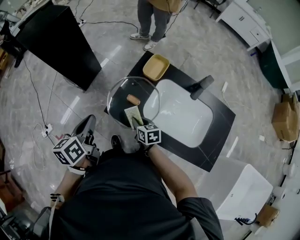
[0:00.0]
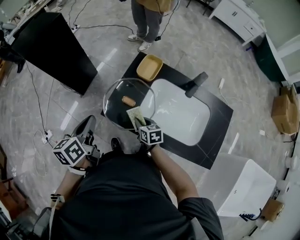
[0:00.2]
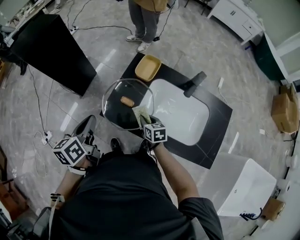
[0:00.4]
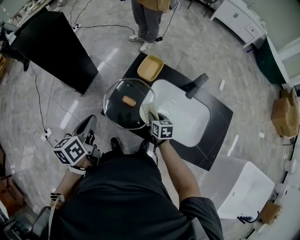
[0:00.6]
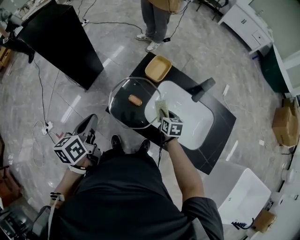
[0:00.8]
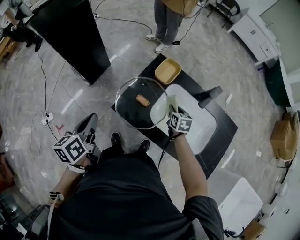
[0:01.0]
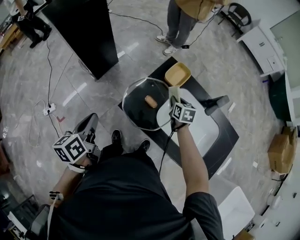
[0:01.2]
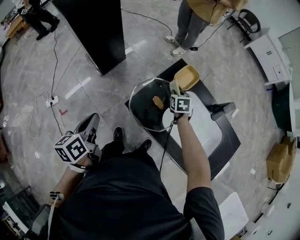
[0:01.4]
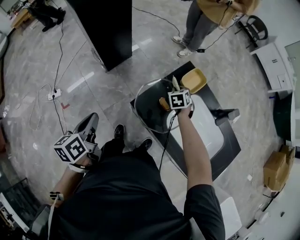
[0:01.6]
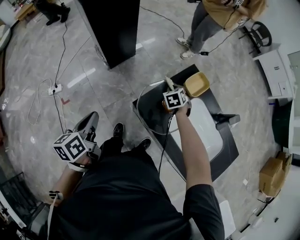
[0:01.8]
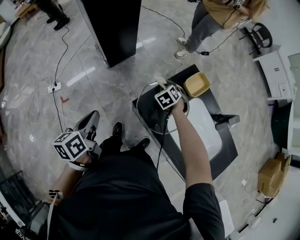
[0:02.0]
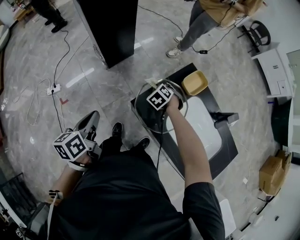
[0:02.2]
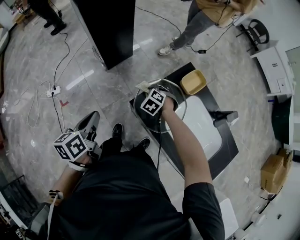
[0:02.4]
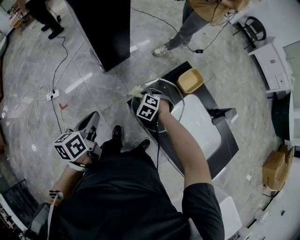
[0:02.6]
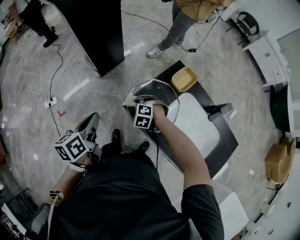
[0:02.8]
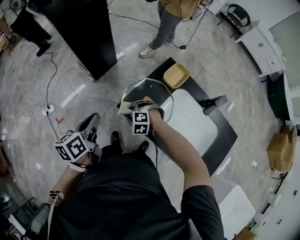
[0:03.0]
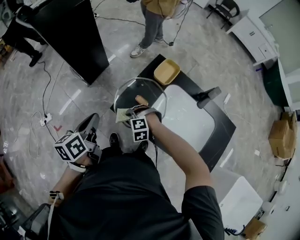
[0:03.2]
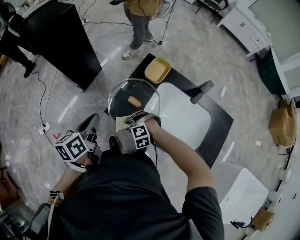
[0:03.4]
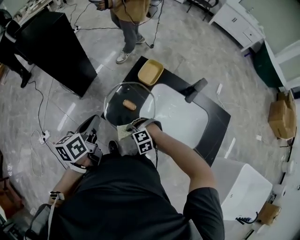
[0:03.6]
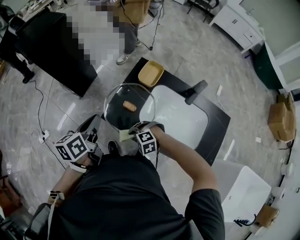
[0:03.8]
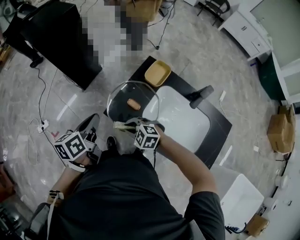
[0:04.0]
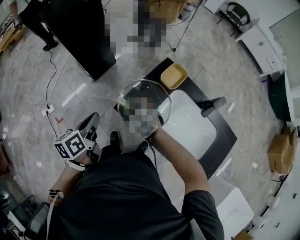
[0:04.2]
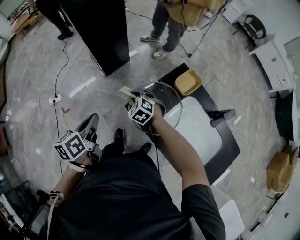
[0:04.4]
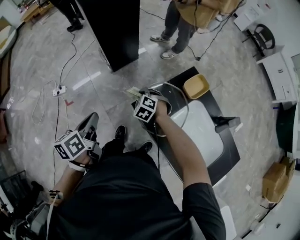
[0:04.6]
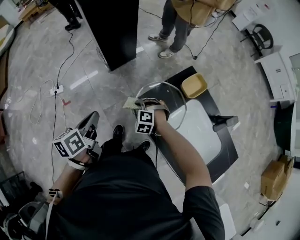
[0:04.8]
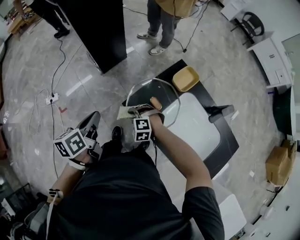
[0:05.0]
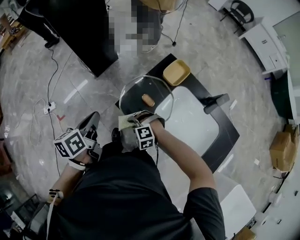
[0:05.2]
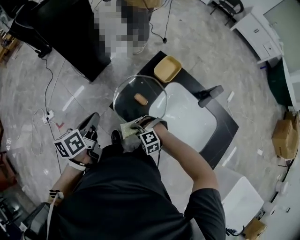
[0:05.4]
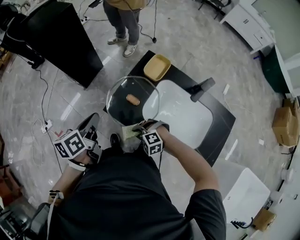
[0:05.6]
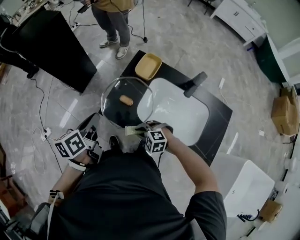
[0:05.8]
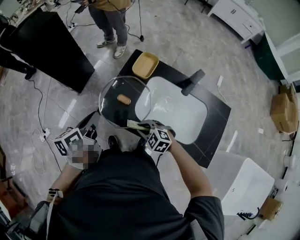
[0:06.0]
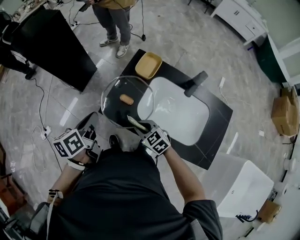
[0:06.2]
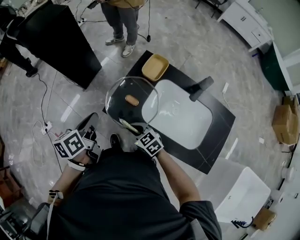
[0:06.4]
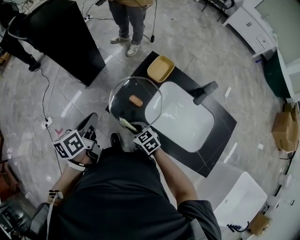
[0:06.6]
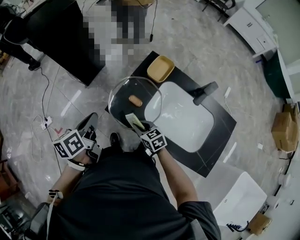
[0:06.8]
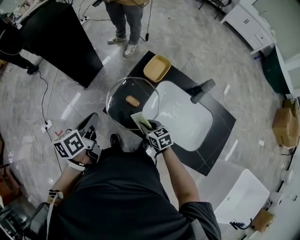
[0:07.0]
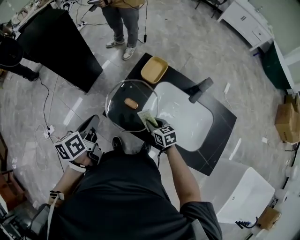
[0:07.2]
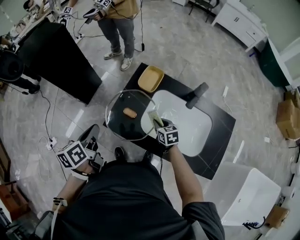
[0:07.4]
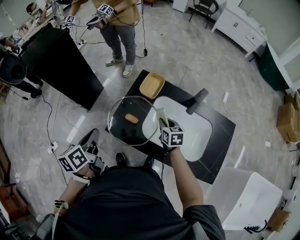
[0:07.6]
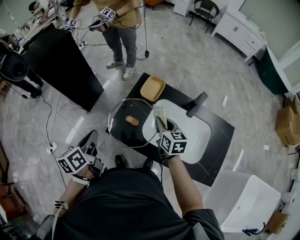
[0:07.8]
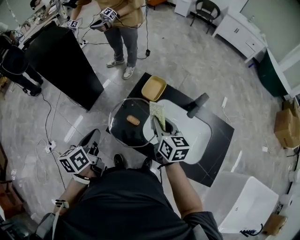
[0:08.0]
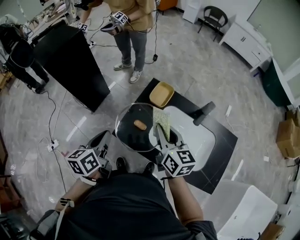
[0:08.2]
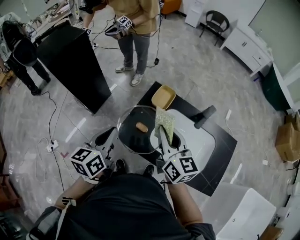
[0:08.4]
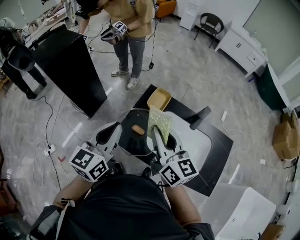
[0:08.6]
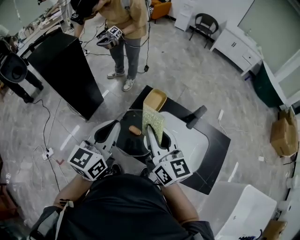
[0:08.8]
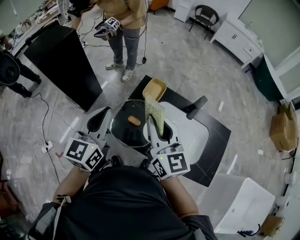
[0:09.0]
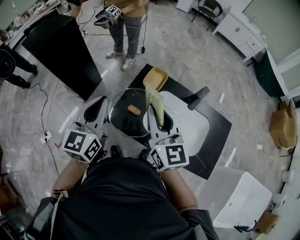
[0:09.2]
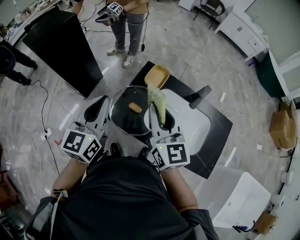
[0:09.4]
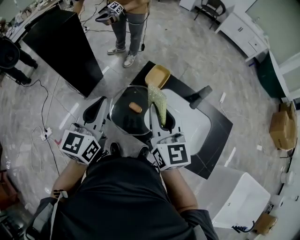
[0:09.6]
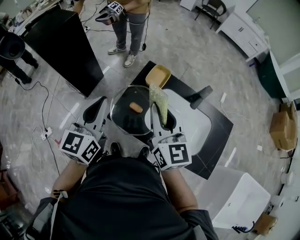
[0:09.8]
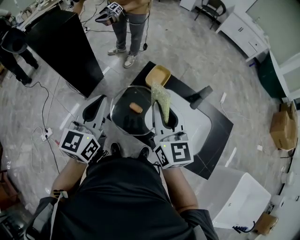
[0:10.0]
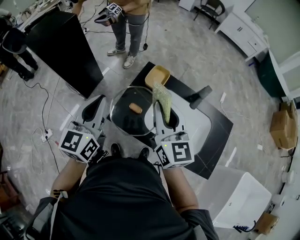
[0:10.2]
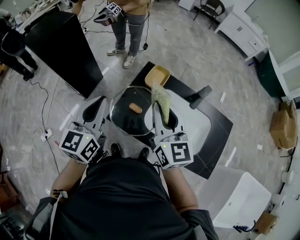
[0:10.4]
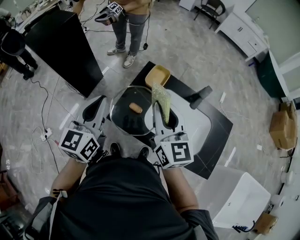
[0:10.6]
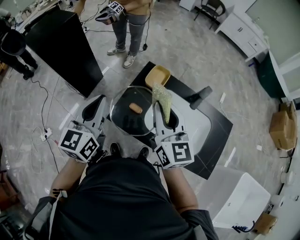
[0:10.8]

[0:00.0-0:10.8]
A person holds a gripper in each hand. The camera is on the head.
0:00.0 to 0:01.6: The right gripper is displaced forward by approximately 20 cm, and swivels approximately 40 degrees. The left gripper travels to the left and backward by some 15 cm.
0:01.6 to 0:03.0: The left gripper shifts approximately 5 cm to the right. The right gripper is displaced to the left and backward by about 20 cm, and twists about 60 degrees counterclockwise, seen from behind.
0:03.0 to 0:04.6: The right gripper shifts approximately 10 cm forward; the left gripper moves to the left, some 5 cm.
0:04.6 to 0:06.2: The left gripper shifts about 15 cm to the right, and changes its angle by some 30 degrees; the right gripper is displaced backward and to the right by about 25 cm, and rotates around the line of its fingers by roughly 50 degrees, clockwise from behind.
0:06.2 to 0:07.8: The right gripper goes roughly 20 cm to the right, upward and forward, and changes its angle by about 40 degrees.
0:07.8 to 0:09.2: The left gripper goes about 10 cm upward, and changes its angle by roughly 40 degrees; the right gripper shifts roughly 20 cm upward, and rotates about 30 degrees.
0:09.2 to 0:10.8: The grippers make only small movements.

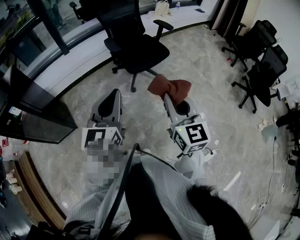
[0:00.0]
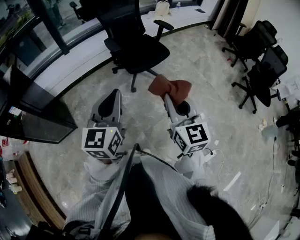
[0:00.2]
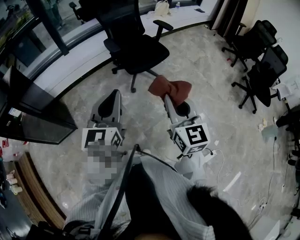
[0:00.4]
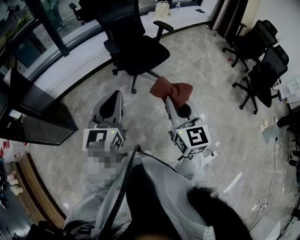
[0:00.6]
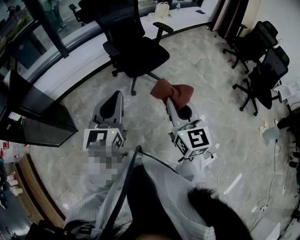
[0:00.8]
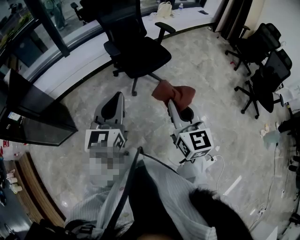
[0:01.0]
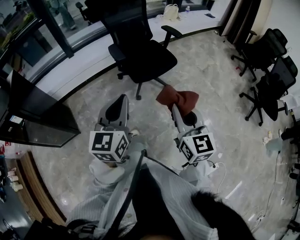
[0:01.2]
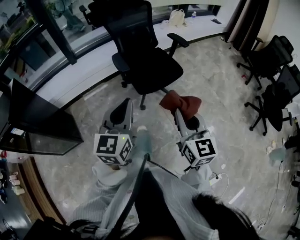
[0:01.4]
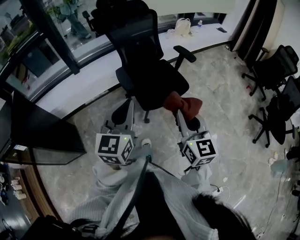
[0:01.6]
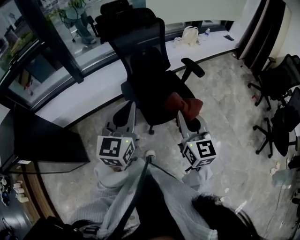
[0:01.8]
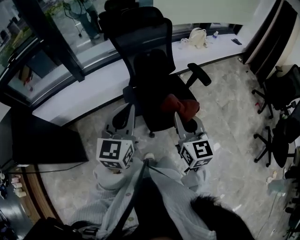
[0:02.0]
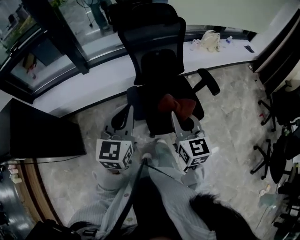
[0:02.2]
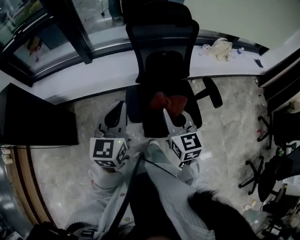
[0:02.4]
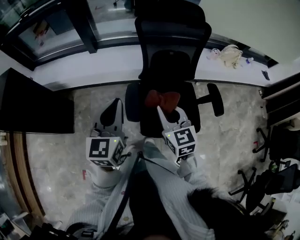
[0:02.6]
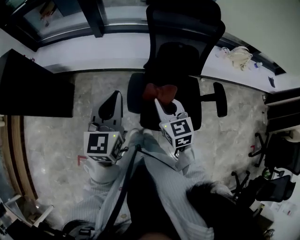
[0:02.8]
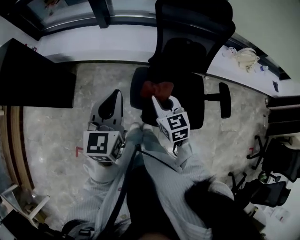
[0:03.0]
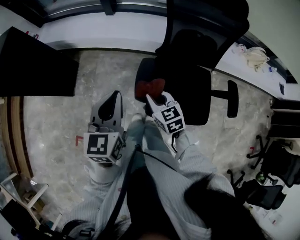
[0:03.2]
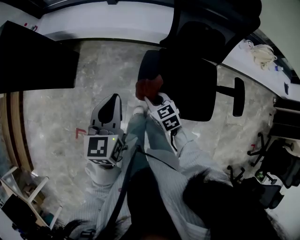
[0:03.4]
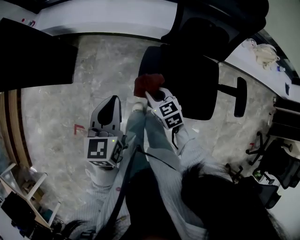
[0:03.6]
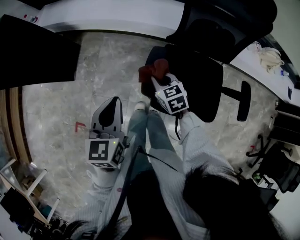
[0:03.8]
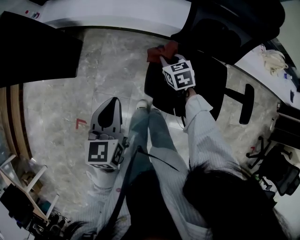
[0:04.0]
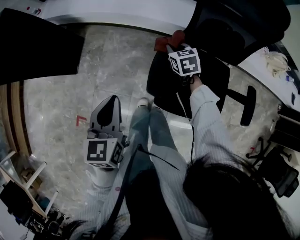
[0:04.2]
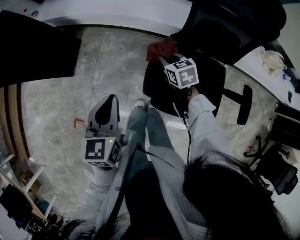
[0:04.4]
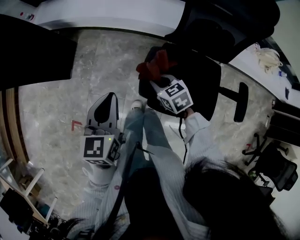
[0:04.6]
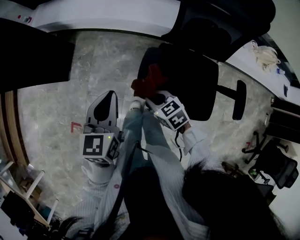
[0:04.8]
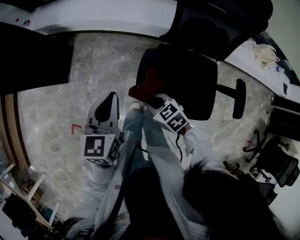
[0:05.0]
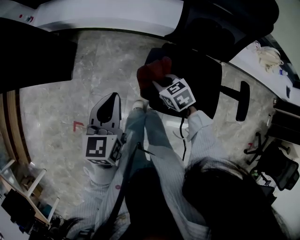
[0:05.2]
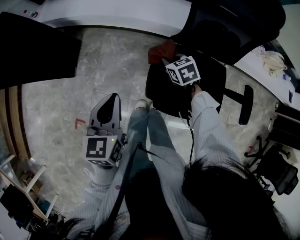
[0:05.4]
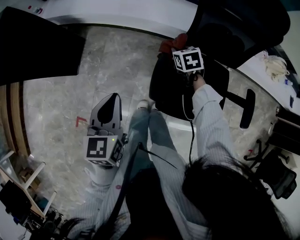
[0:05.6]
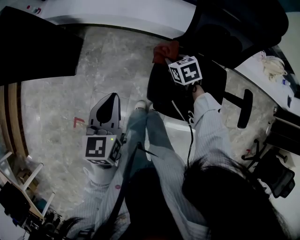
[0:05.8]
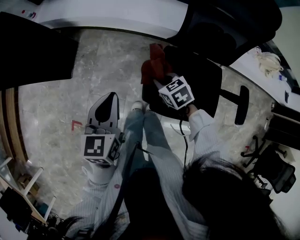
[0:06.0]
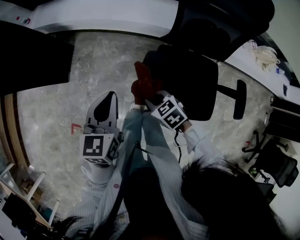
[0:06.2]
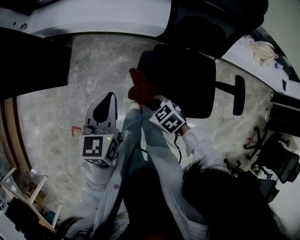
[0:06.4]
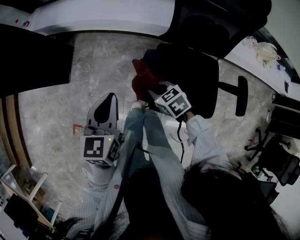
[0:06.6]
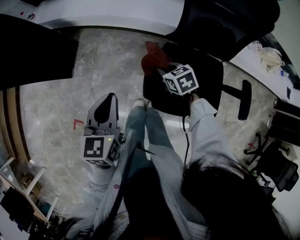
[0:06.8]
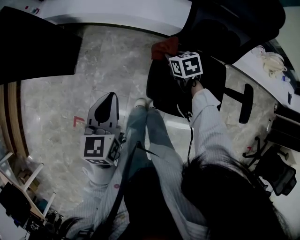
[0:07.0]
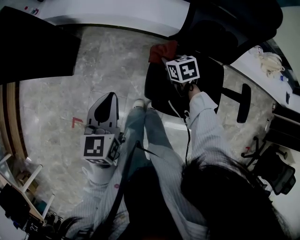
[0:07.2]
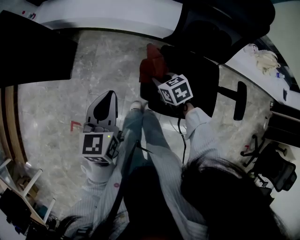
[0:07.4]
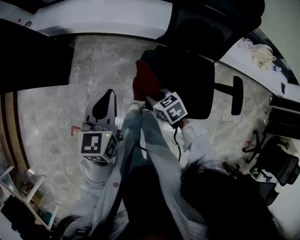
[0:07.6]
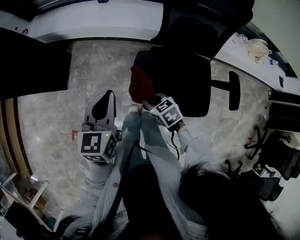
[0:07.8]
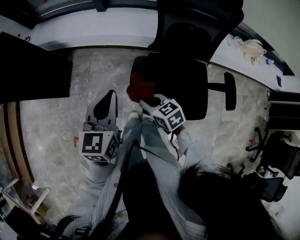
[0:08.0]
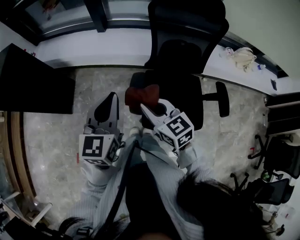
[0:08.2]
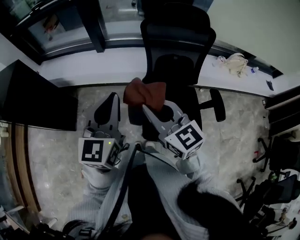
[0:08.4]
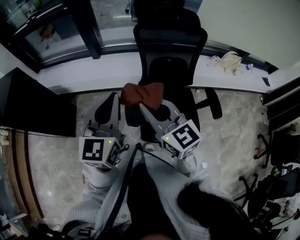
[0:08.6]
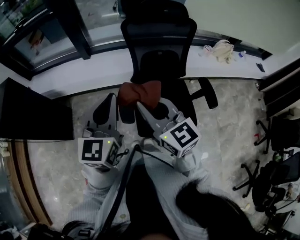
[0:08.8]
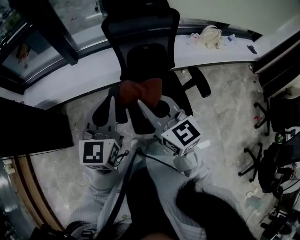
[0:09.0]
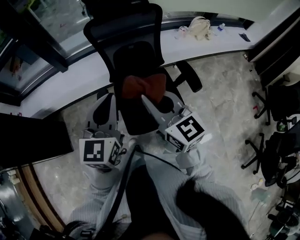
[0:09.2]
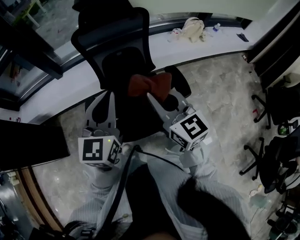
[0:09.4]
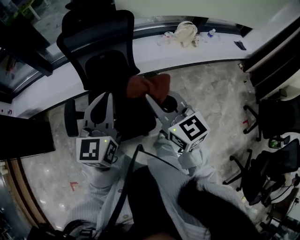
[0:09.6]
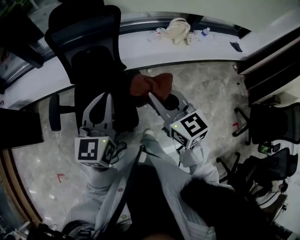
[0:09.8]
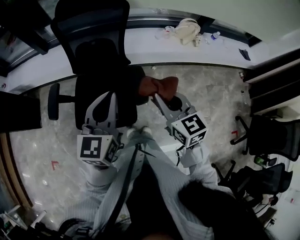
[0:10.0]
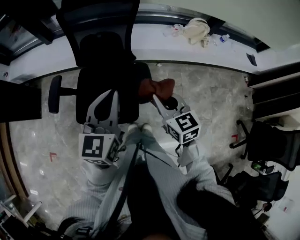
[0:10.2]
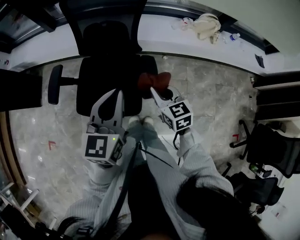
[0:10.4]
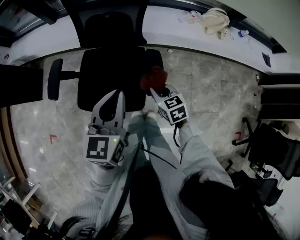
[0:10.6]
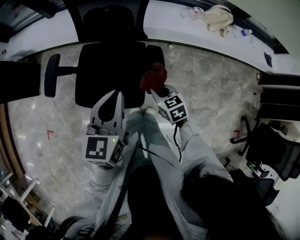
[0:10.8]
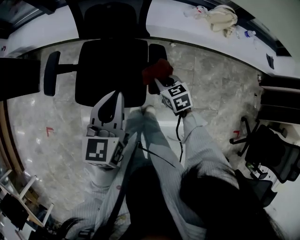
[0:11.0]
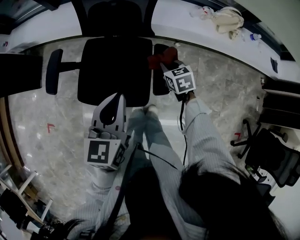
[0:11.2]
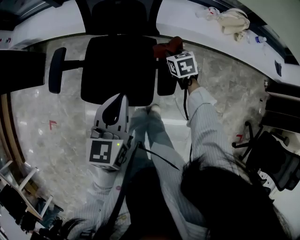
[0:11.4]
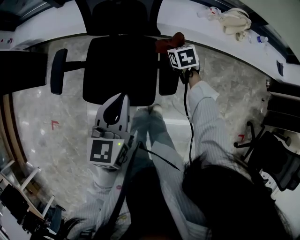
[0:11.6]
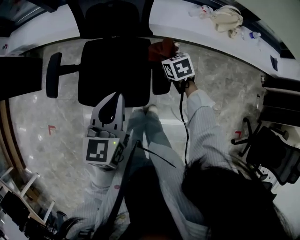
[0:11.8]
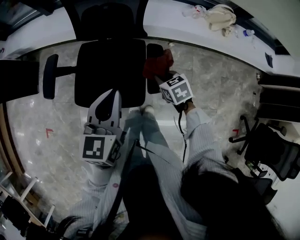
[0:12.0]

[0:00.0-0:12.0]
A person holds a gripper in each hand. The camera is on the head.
0:00.0 to 0:01.6: Both grippers travel together forward, roughly 30 cm.
0:01.6 to 0:03.0: The right gripper moves approximately 50 cm, and changes its angle by roughly 50 degrees, while the left gripper ends up about 30 cm from where it was, and changes its angle by roughly 40 degrees.
0:03.0 to 0:04.4: The right gripper heads downward and forward, covering roughly 25 cm, and turns by roughly 20 degrees. The left gripper shifts roughly 15 cm downward and to the left.
0:04.4 to 0:06.0: The right gripper goes forward and backward, about 20 cm each way, reversing 2 times.
0:06.0 to 0:07.6: The right gripper moves forward and backward over roughly 15 cm, changing direction 2 times.
0:07.6 to 0:09.0: The left gripper shifts roughly 20 cm upward, and changes its angle by approximately 30 degrees; the right gripper goes some 35 cm upward, and points its fingers some 40 degrees further upward.
0:09.0 to 0:10.4: Both grippers are carried to the right, approximately 50 cm. The right gripper travels downward by some 25 cm, and turns by approximately 30 degrees.
0:10.4 to 0:12.0: The right gripper travels downward by about 15 cm, travels forward and back again, approximately 20 cm each way, and rotates some 30 degrees. Meanwhile the left gripper is displaced downward by some 10 cm.
